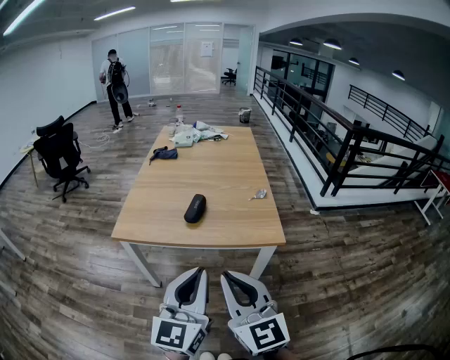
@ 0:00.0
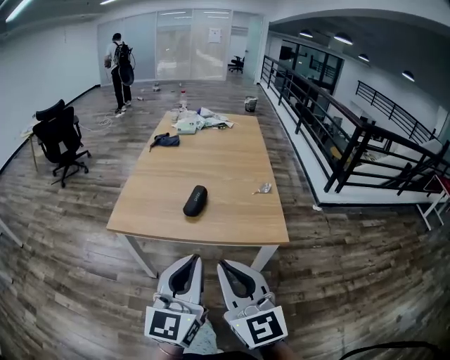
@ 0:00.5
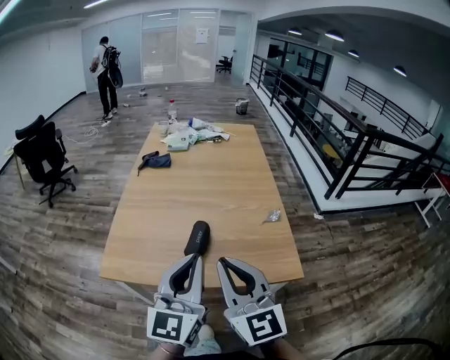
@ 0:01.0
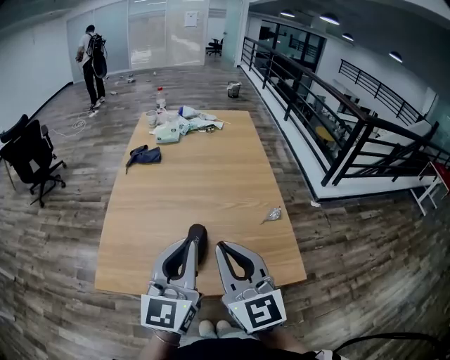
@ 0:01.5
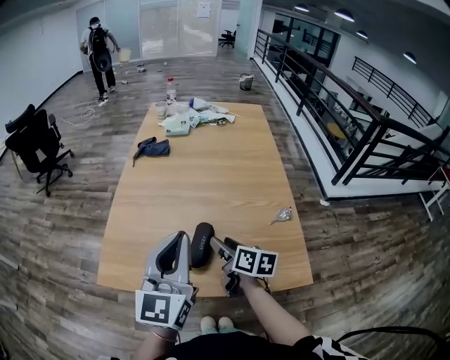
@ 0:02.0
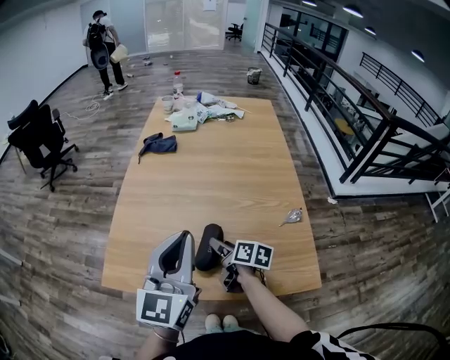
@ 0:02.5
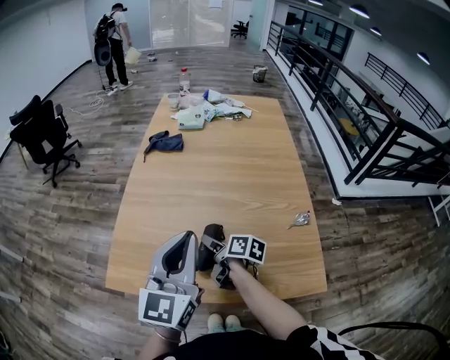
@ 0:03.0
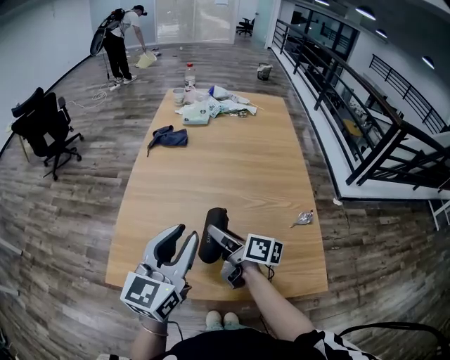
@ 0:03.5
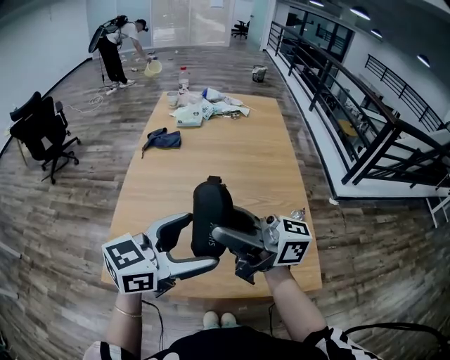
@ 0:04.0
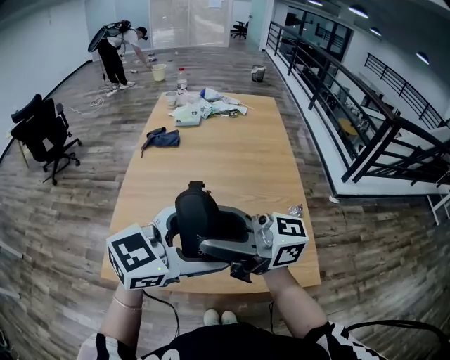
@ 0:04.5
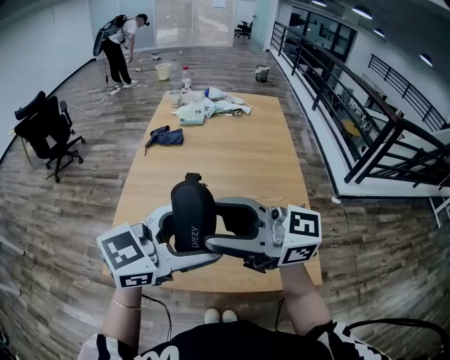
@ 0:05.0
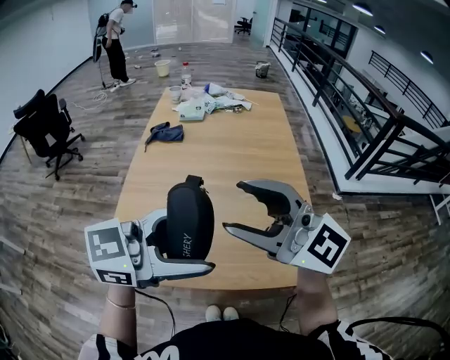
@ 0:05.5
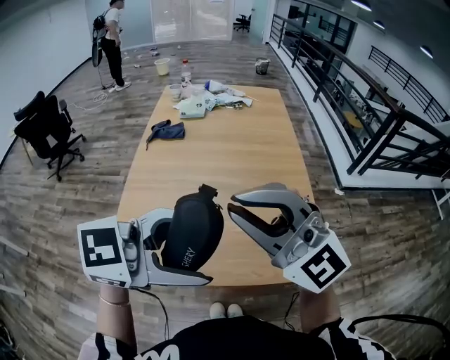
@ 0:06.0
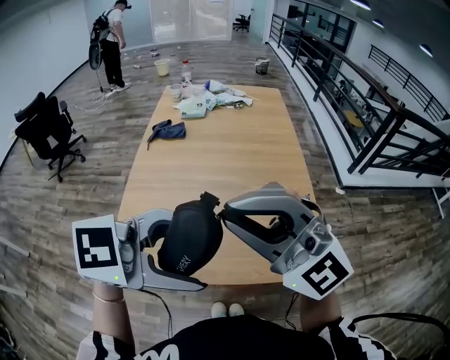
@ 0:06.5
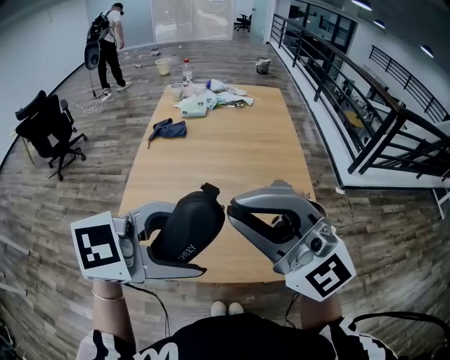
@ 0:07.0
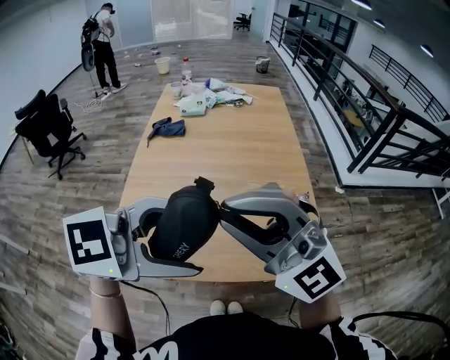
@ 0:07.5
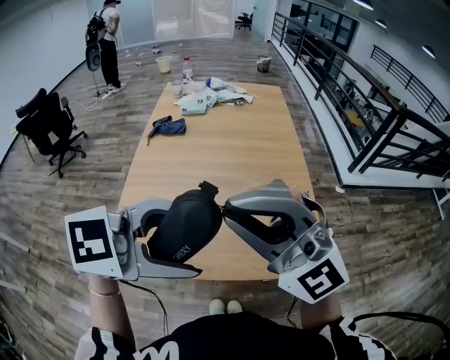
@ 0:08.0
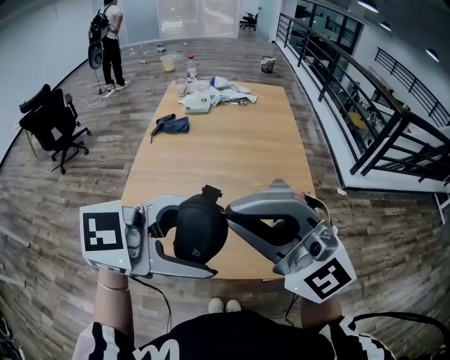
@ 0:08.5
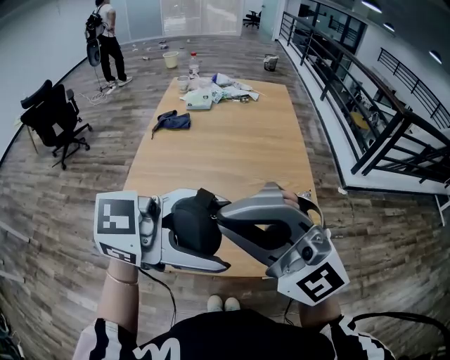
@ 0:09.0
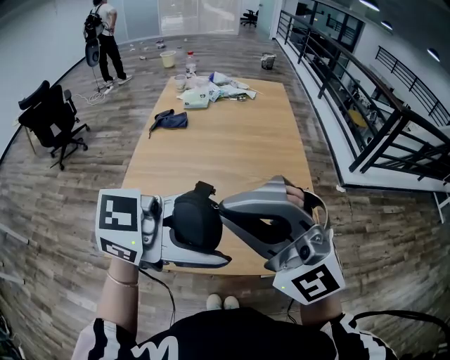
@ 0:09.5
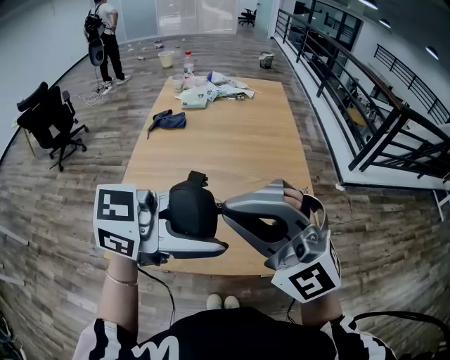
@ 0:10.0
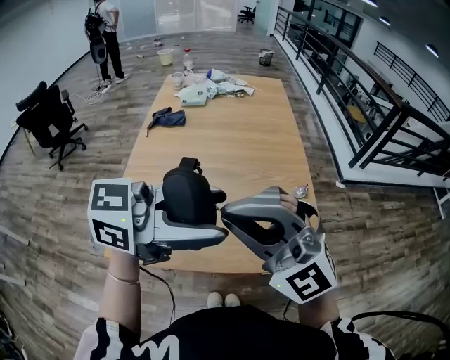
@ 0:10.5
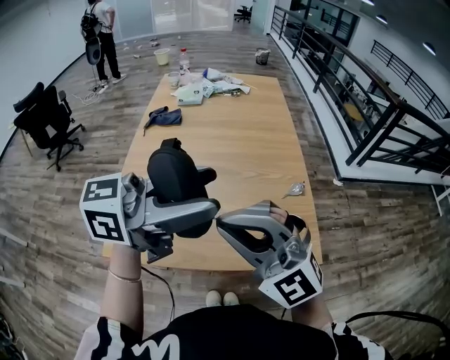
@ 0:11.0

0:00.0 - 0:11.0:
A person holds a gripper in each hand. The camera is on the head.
0:00.0 - 0:02.0: The right gripper travels forward and downward by about 50 cm, rolls clockwise, seen from behind, by about 50 degrees, and opens its fingers. Meanwhile the left gripper goes approximately 35 cm forward.
0:02.0 - 0:03.5: The left gripper heads forward, covering approximately 5 cm, while the right gripper travels to the left and forward by approximately 10 cm, moves some 5 cm downward and comes back, and changes its angle by some 20 degrees.
0:03.5 - 0:05.5: The left gripper ends up roughly 15 cm from where it was, swivels roughly 50 degrees, and opens up, while the right gripper moves upward, approximately 30 cm, and rolls counterclockwise, seen from behind, by some 80 degrees.
0:05.5 - 0:07.5: The right gripper shifts by about 5 cm, turns by roughly 30 degrees, and closes up. The left gripper turns by about 20 degrees.
0:07.5 - 0:09.0: The grippers stay close to where they were, moving slightly.
0:09.0 - 0:11.0: The left gripper changes place by about 5 cm, and rotates approximately 20 degrees, while the right gripper moves downward, about 10 cm.

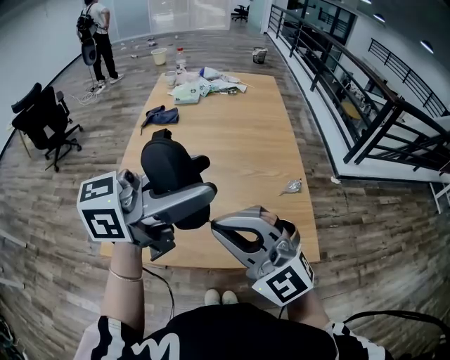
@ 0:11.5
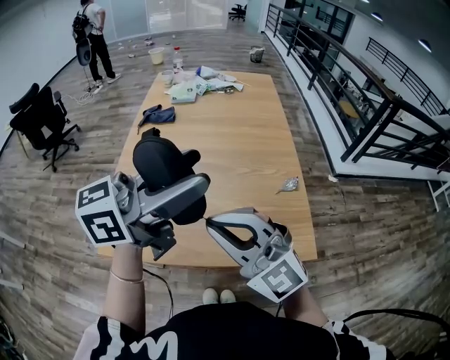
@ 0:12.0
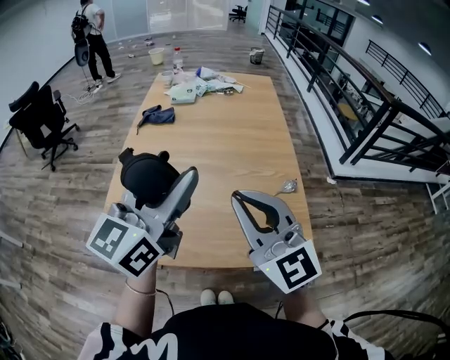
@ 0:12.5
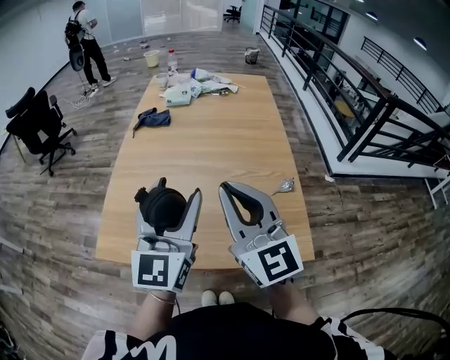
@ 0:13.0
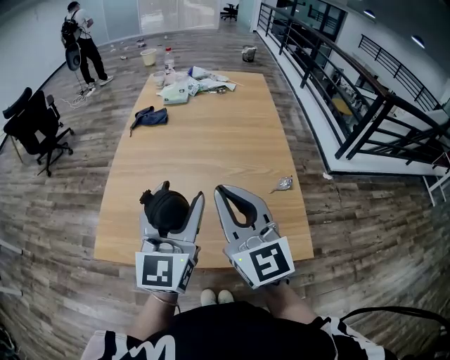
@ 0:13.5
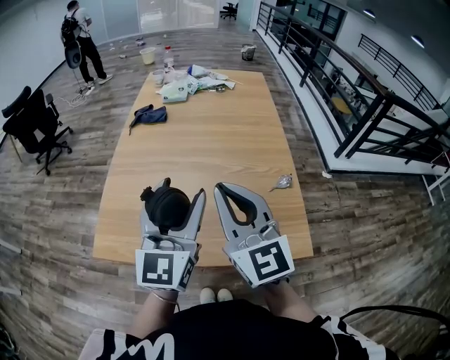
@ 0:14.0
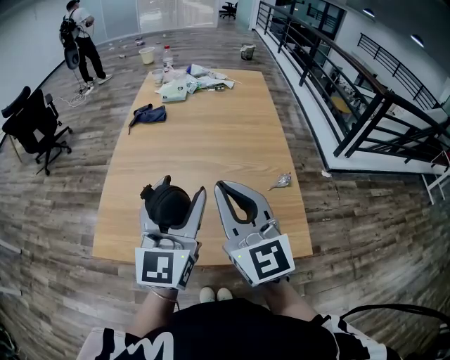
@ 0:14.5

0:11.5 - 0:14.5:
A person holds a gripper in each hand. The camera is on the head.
0:11.5 - 0:13.0: The left gripper heads downward, covering roughly 10 cm, and rotates about 60 degrees, while the right gripper is displaced forward by roughly 5 cm, and turns by some 40 degrees.
0:13.0 - 0:14.5: The grippers make only small movements.

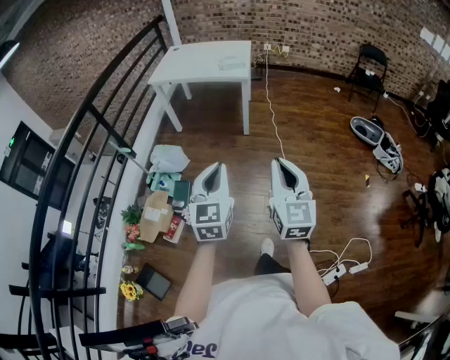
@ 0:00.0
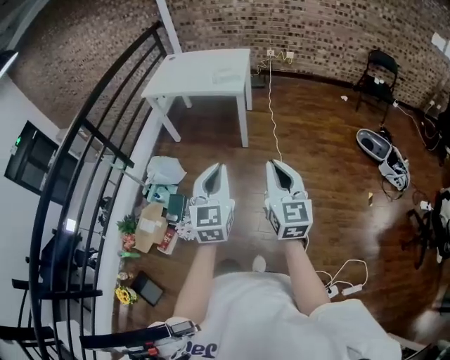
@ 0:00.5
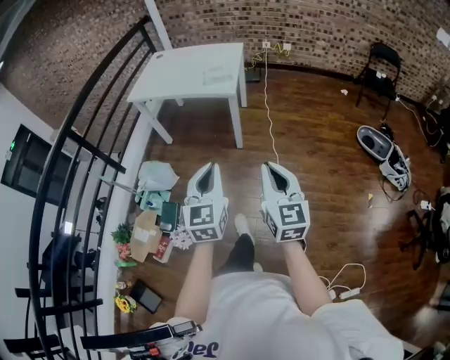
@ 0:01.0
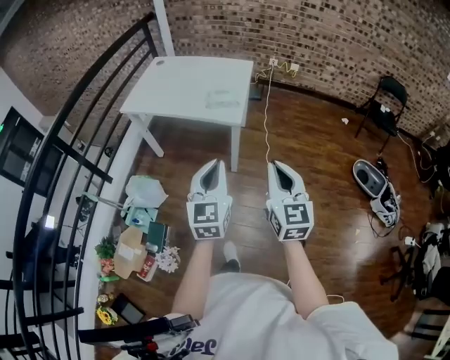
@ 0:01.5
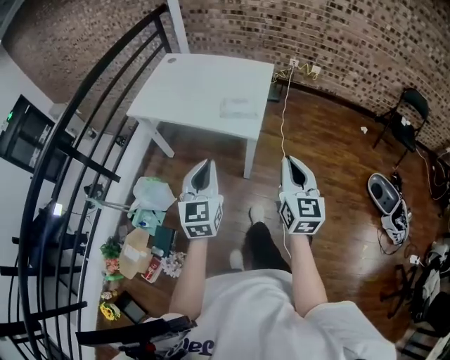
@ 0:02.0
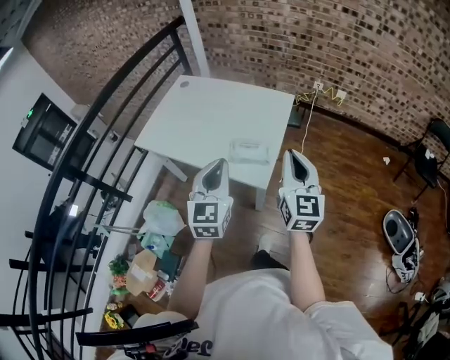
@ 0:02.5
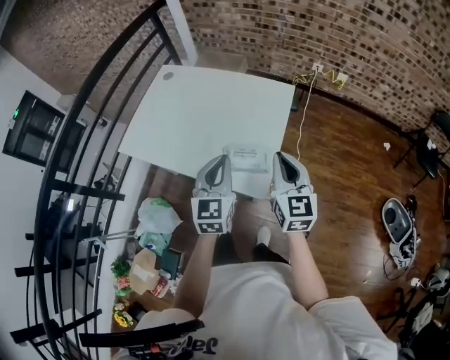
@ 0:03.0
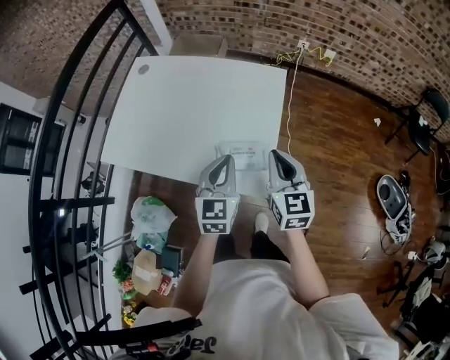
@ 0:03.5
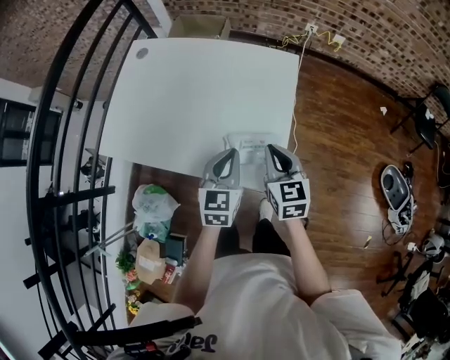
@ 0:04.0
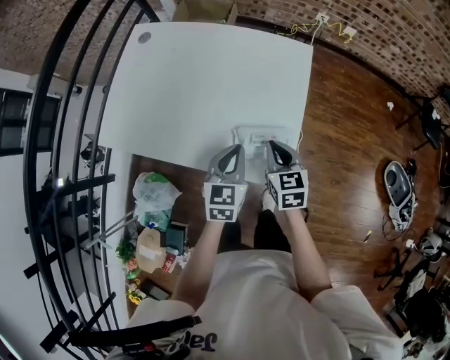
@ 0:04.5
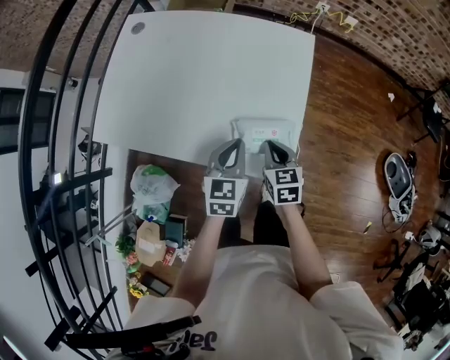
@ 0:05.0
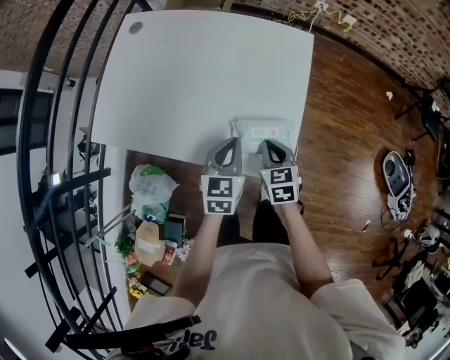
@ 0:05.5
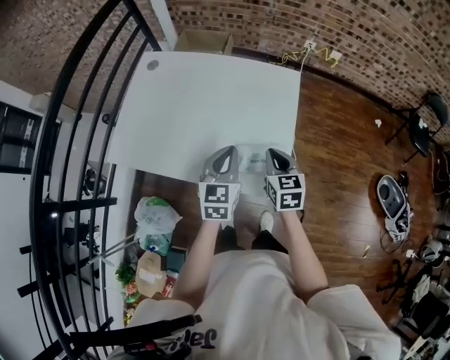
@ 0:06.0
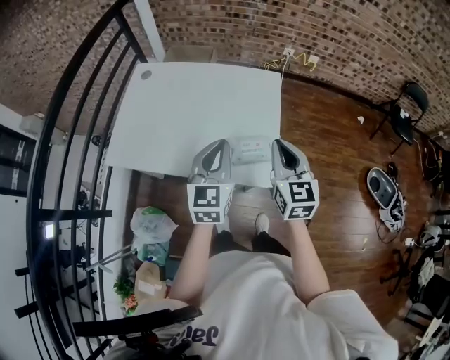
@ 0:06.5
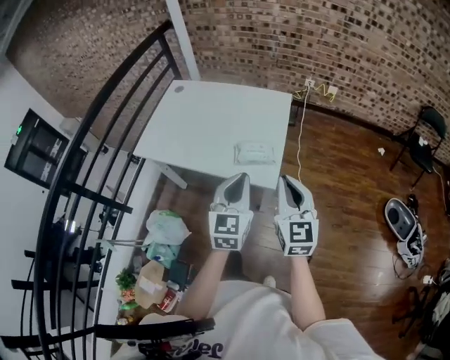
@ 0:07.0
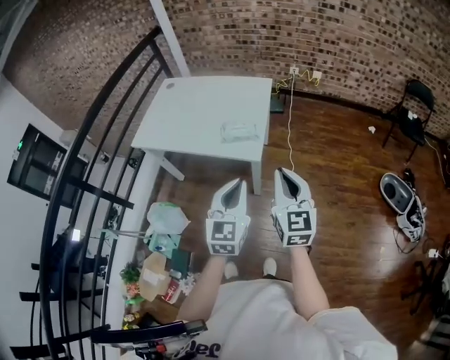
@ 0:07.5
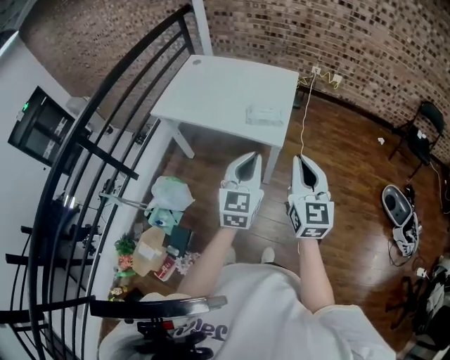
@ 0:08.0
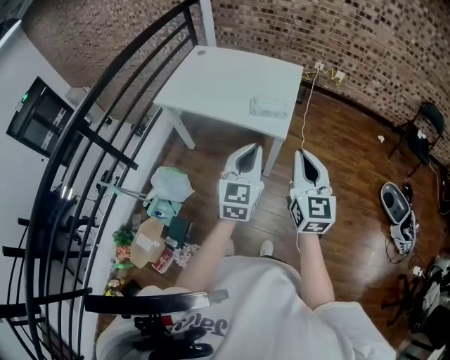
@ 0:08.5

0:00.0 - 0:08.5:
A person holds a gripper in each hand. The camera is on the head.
0:00.0 - 0:02.0: The two grippers travel together, forward, some 60 cm.
0:02.0 - 0:04.0: Both grippers are carried forward, some 40 cm. The right gripper rotates approximately 20 degrees. Meanwhile the left gripper changes its angle by roughly 20 degrees.
0:04.0 - 0:06.5: The grippers both shift upward by approximately 15 cm.
0:06.5 - 0:08.5: Both grippers move backward, roughly 35 cm.

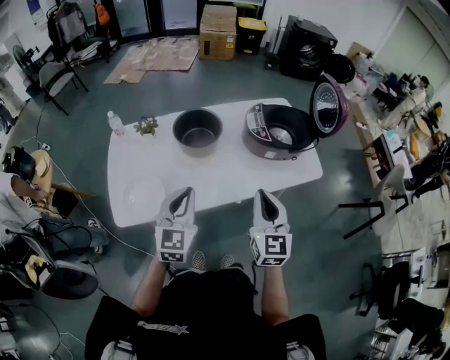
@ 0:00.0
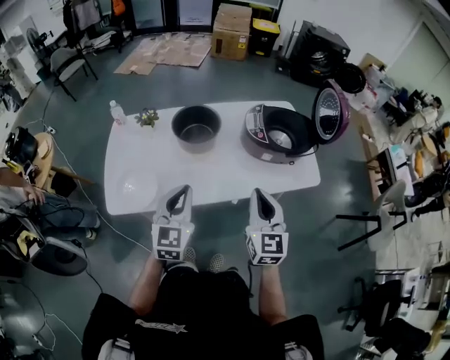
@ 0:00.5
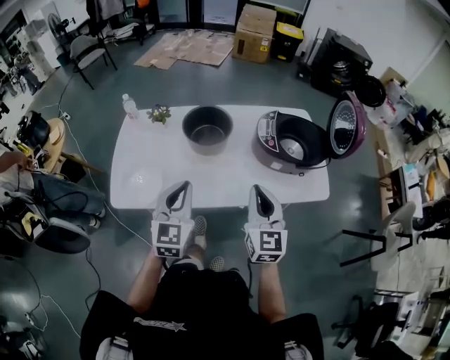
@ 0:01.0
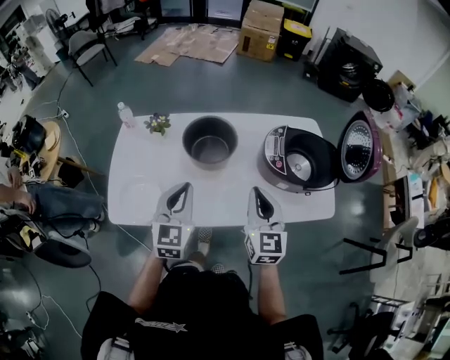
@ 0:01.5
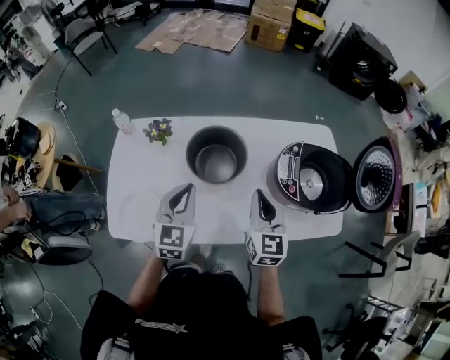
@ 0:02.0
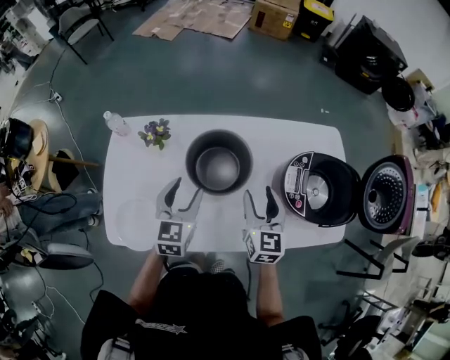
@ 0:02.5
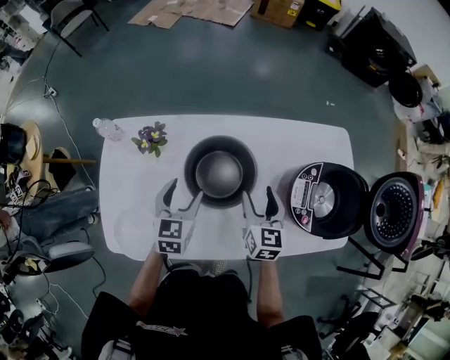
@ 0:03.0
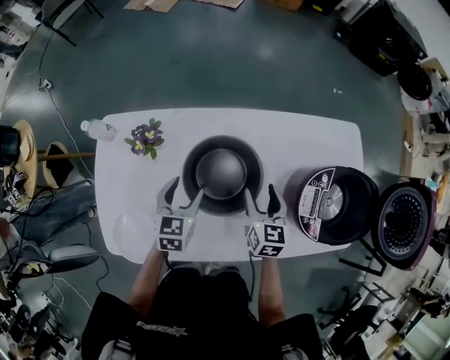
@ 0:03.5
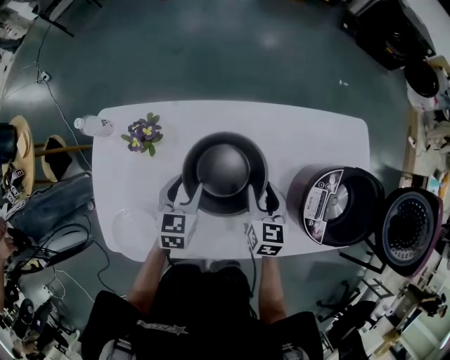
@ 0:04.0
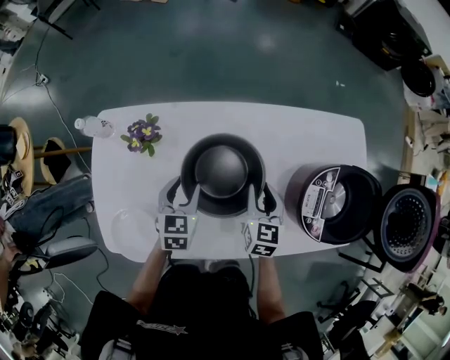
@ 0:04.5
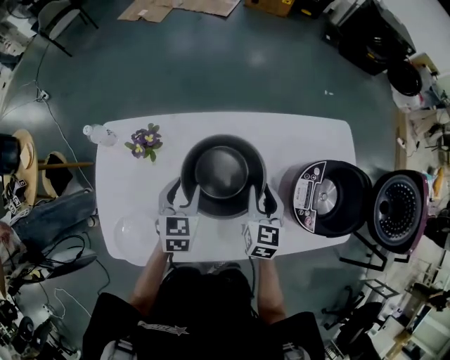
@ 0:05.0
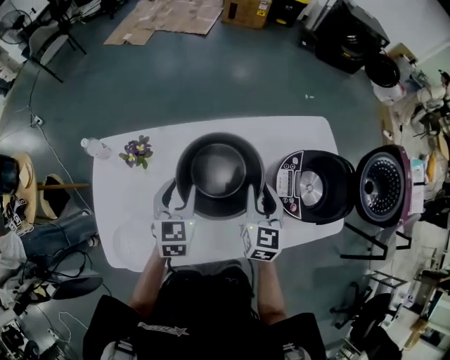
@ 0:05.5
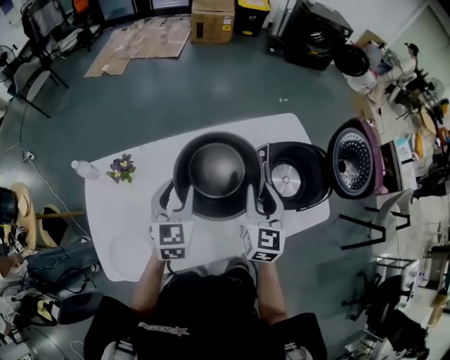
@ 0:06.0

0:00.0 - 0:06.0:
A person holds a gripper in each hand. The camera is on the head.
0:00.0 - 0:02.0: The two grippers go roughly 20 cm forward.
0:02.0 - 0:04.0: The two grippers go some 25 cm downward and forward. The right gripper turns by about 20 degrees, and opens up, while the left gripper rotates some 20 degrees, and opens its fingers.
0:04.0 - 0:06.0: The two grippers go approximately 25 cm upward and to the right. The left gripper swivels approximately 20 degrees. The right gripper turns by approximately 30 degrees.
